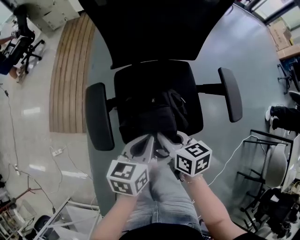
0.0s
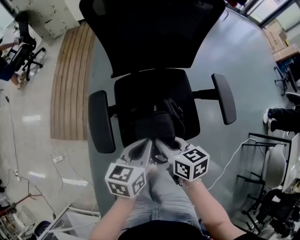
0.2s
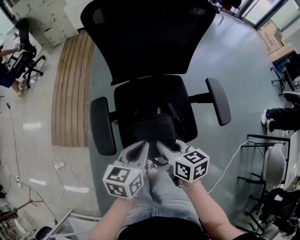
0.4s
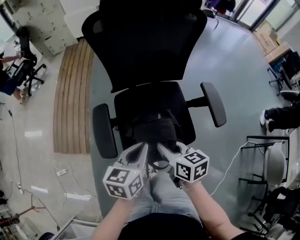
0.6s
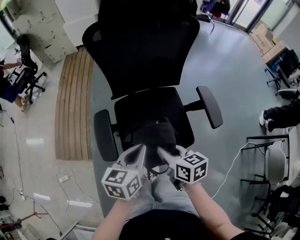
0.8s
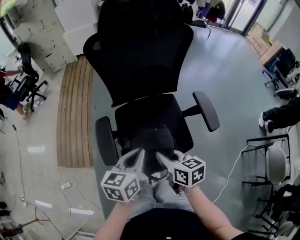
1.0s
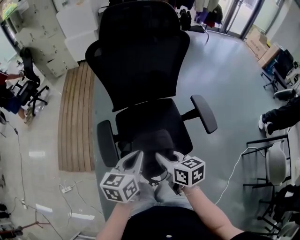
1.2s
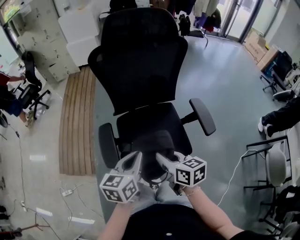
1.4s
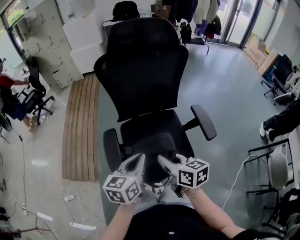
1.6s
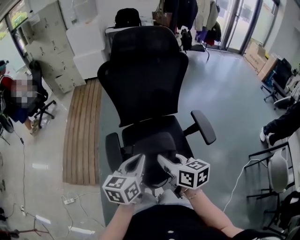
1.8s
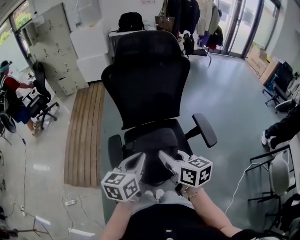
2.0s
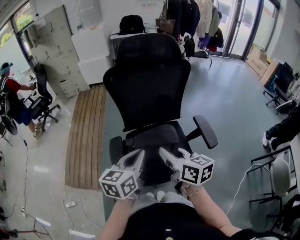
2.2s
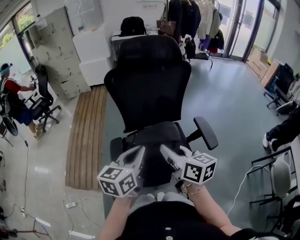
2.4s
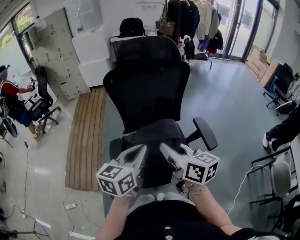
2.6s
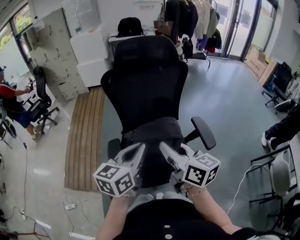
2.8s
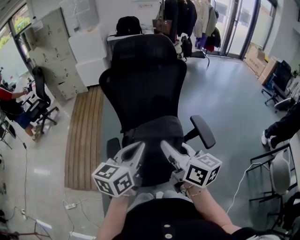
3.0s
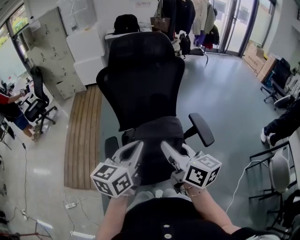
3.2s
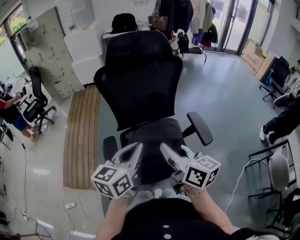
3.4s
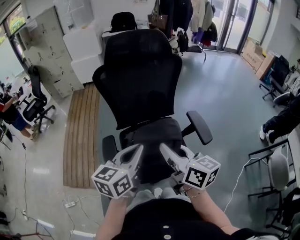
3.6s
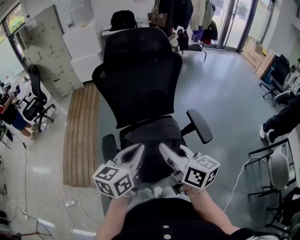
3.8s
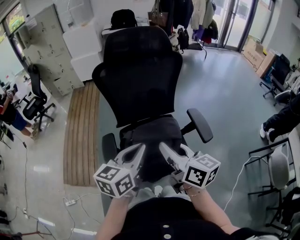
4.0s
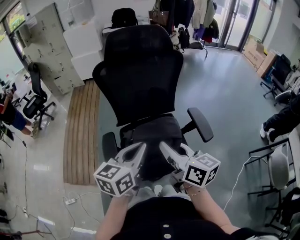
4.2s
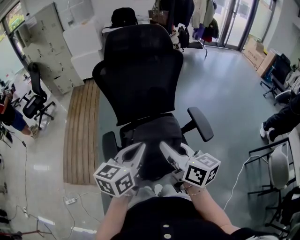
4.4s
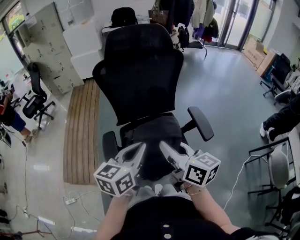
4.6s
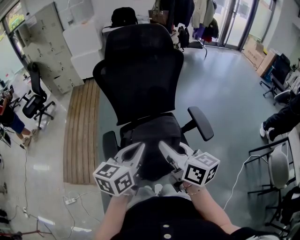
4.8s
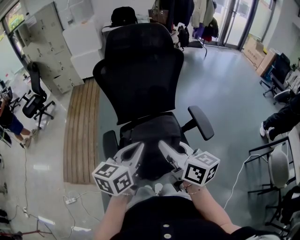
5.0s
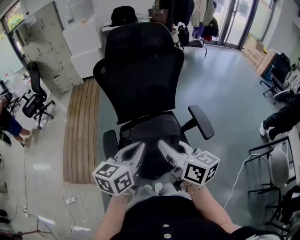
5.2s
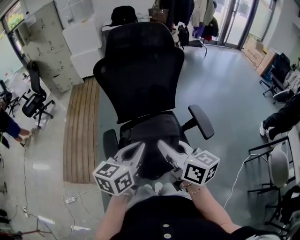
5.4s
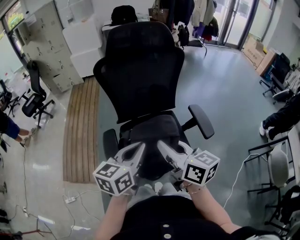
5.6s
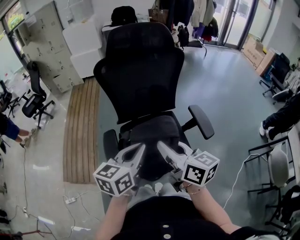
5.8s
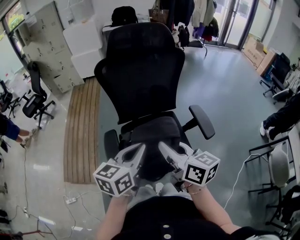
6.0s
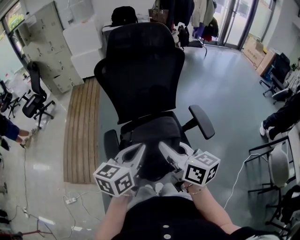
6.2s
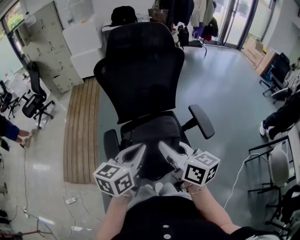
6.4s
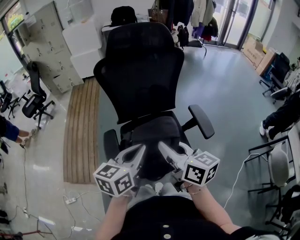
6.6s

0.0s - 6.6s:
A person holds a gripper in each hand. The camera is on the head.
0.0s - 1.6s: Both grippers travel together upward, approximately 15 cm.
1.6s - 3.2s: The grippers both shift upward by about 10 cm. The right gripper turns by approximately 20 degrees.
3.2s - 6.6s: The grippers make only small movements.

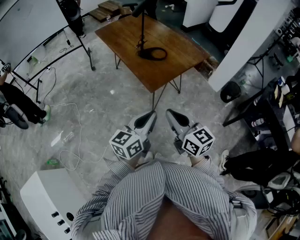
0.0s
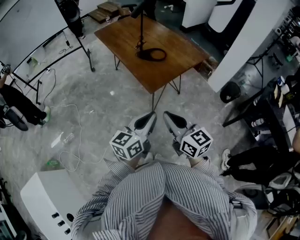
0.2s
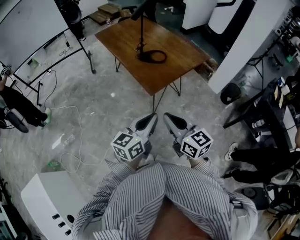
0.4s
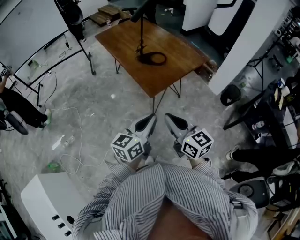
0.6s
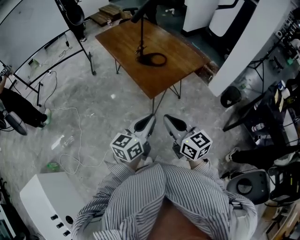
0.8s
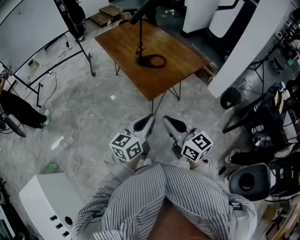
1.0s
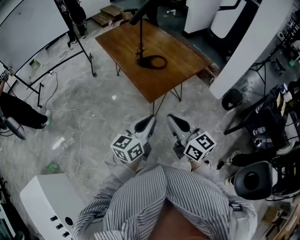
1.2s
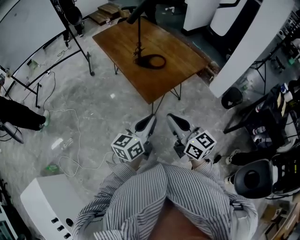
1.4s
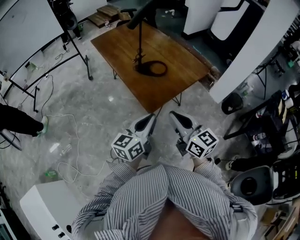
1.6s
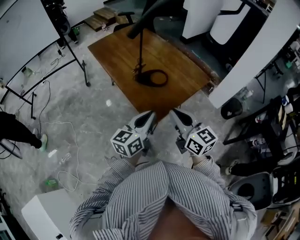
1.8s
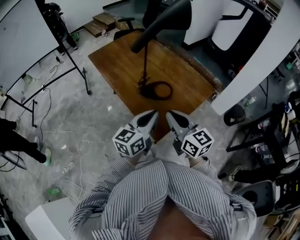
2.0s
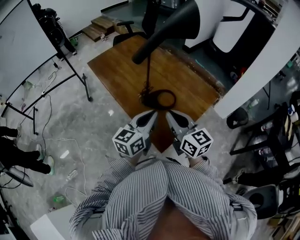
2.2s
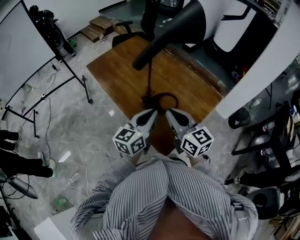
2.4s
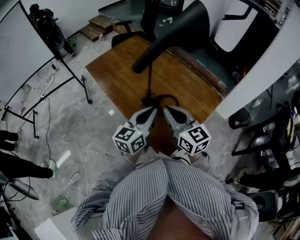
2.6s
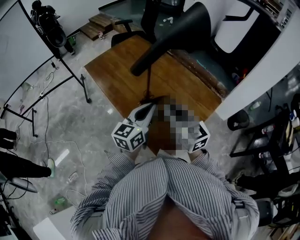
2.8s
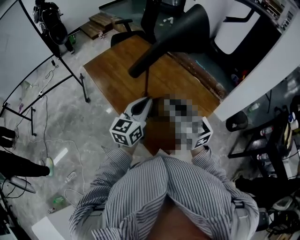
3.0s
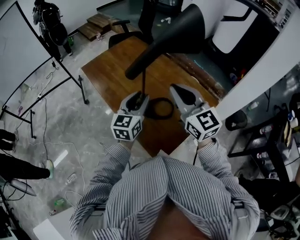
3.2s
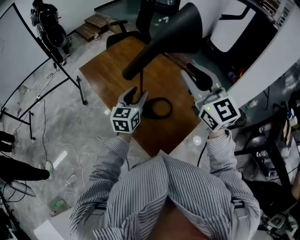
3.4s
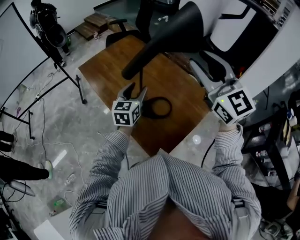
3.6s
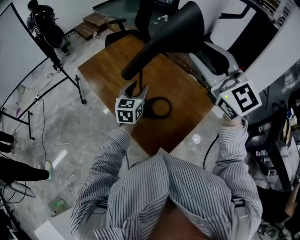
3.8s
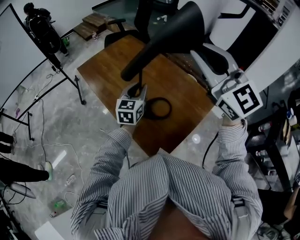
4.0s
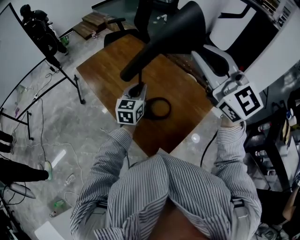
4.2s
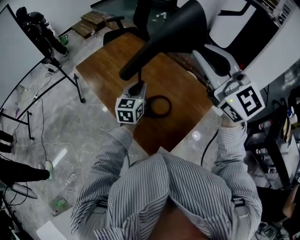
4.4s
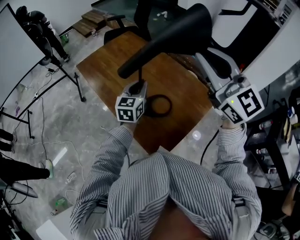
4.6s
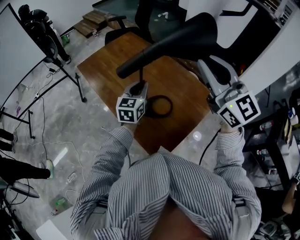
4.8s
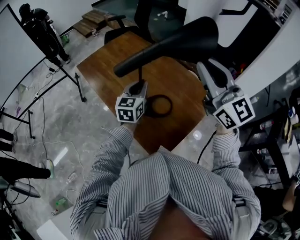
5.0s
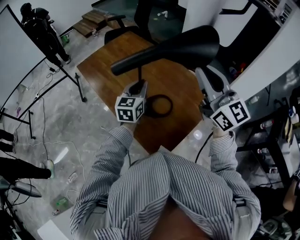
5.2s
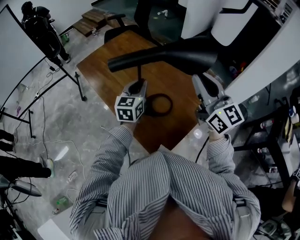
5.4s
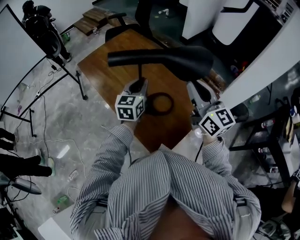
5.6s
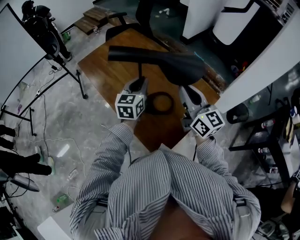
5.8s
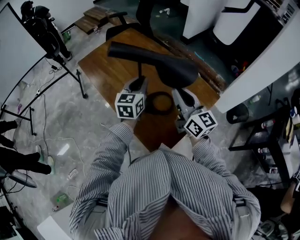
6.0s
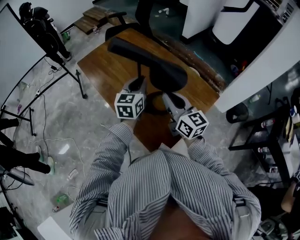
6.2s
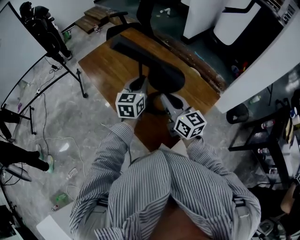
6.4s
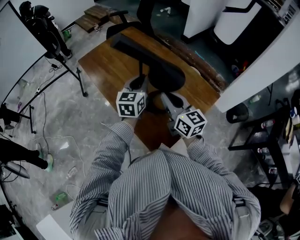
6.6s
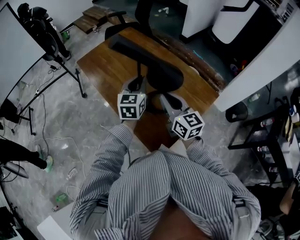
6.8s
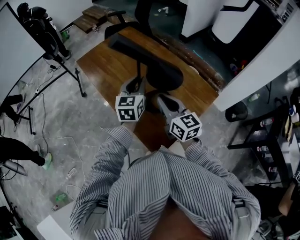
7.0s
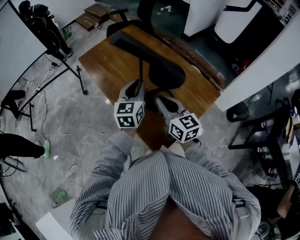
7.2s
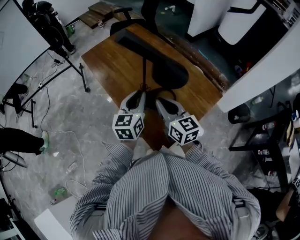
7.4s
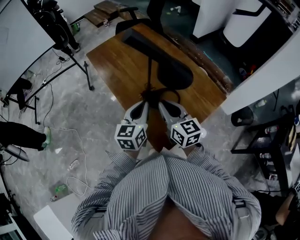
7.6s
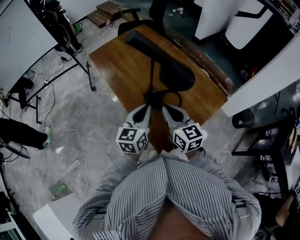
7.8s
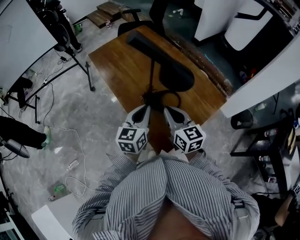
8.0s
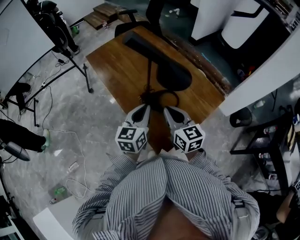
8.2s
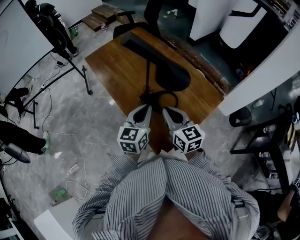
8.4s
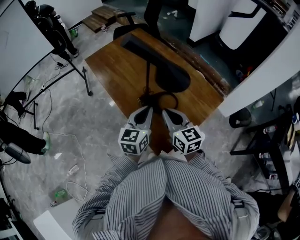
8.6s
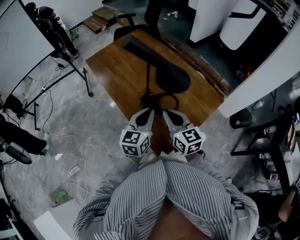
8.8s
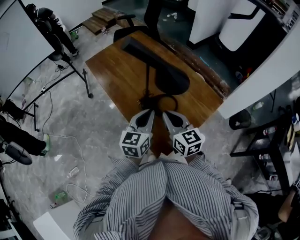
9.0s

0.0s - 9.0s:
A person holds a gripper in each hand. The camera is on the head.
0.0s - 1.6s: The two grippers go about 15 cm forward.
1.6s - 3.0s: Both grippers travel together forward, roughly 35 cm.
3.0s - 4.4s: The left gripper moves forward, some 10 cm, and opens, then closes once more, while the right gripper heads upward, covering some 20 cm, rotates some 30 degrees, and opens and closes again.
4.4s - 6.0s: The right gripper is displaced downward by some 25 cm, and rotates some 40 degrees.
6.0s - 7.6s: The right gripper goes some 10 cm to the left and downward; the left gripper moves backward, approximately 10 cm.
7.6s - 9.0s: The grippers stay close to where they were, moving slightly.

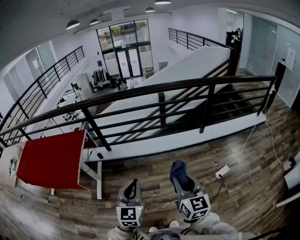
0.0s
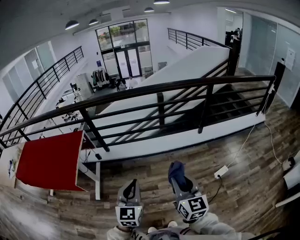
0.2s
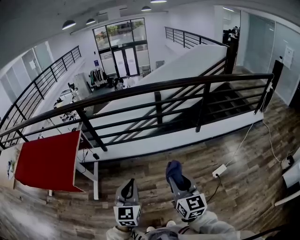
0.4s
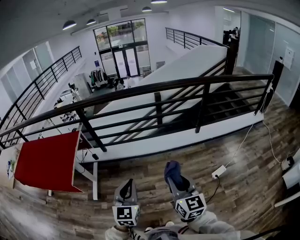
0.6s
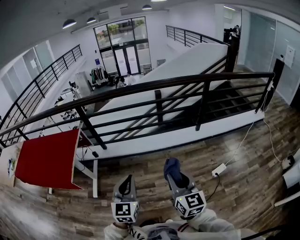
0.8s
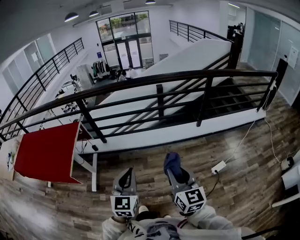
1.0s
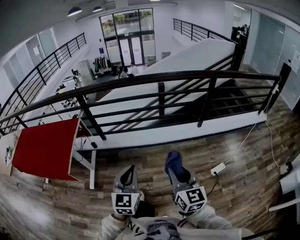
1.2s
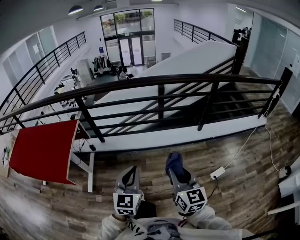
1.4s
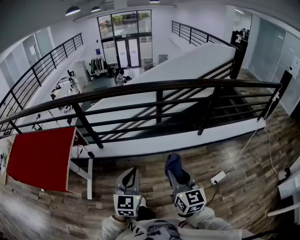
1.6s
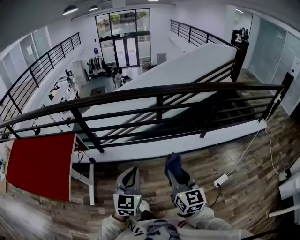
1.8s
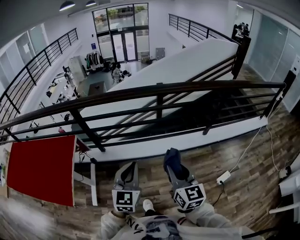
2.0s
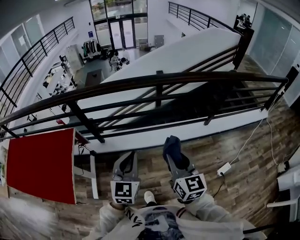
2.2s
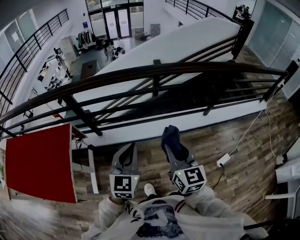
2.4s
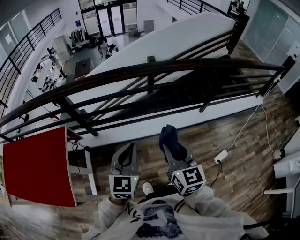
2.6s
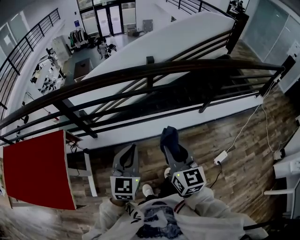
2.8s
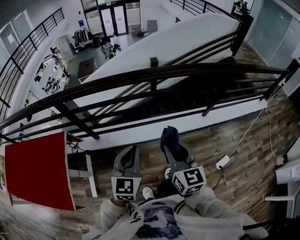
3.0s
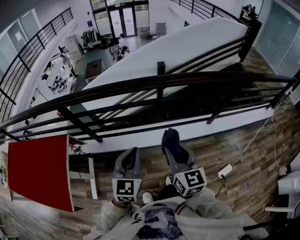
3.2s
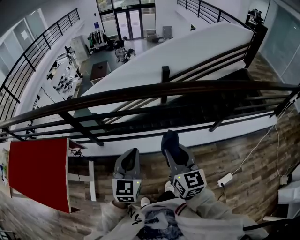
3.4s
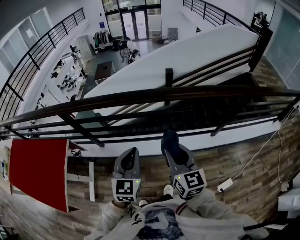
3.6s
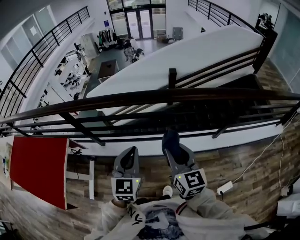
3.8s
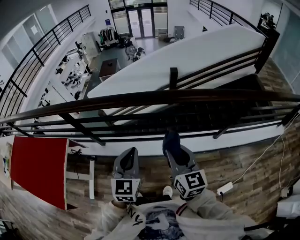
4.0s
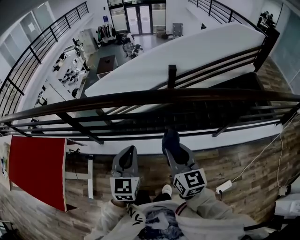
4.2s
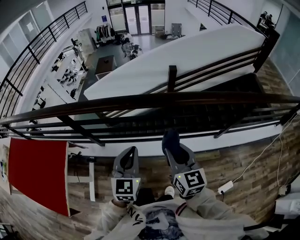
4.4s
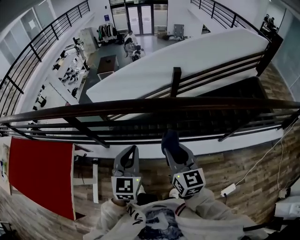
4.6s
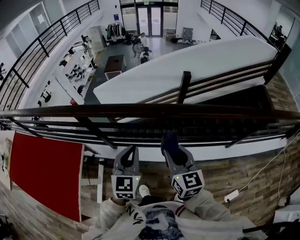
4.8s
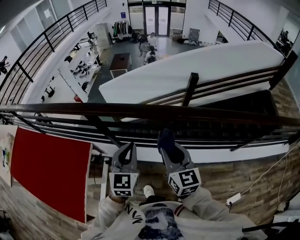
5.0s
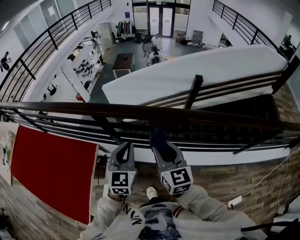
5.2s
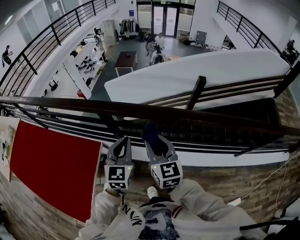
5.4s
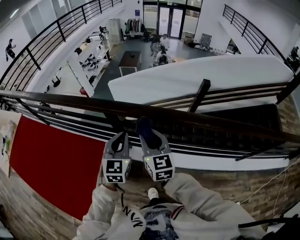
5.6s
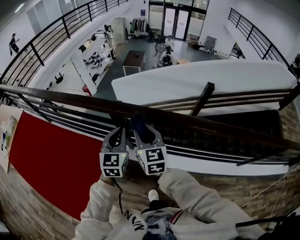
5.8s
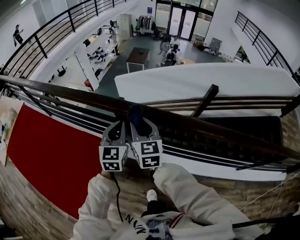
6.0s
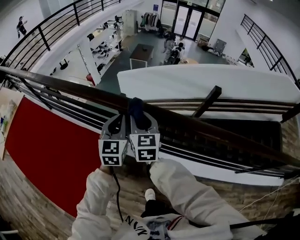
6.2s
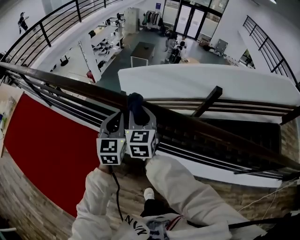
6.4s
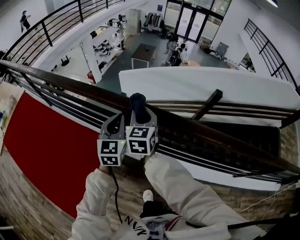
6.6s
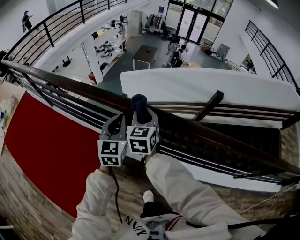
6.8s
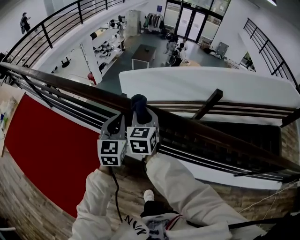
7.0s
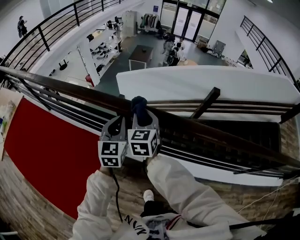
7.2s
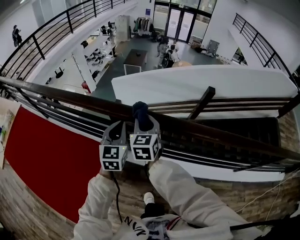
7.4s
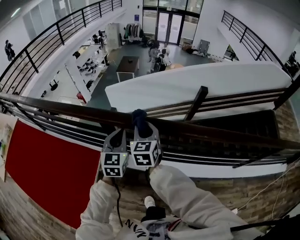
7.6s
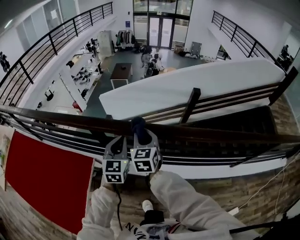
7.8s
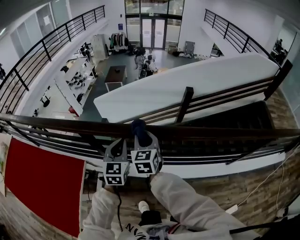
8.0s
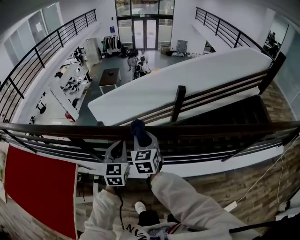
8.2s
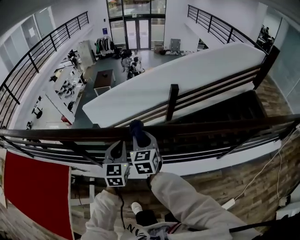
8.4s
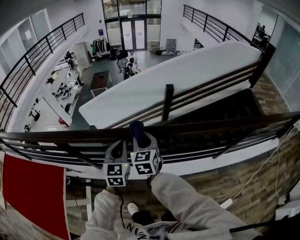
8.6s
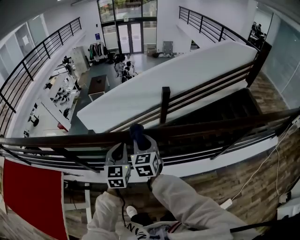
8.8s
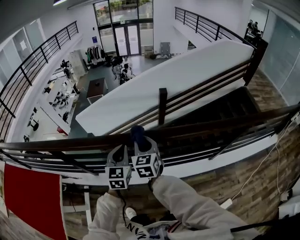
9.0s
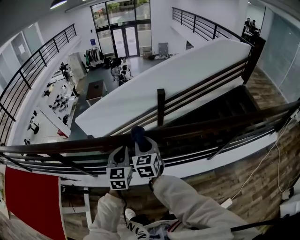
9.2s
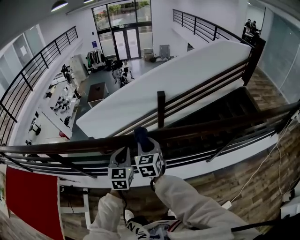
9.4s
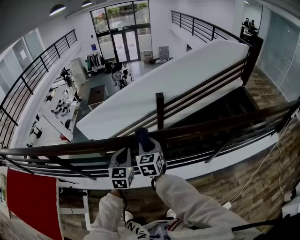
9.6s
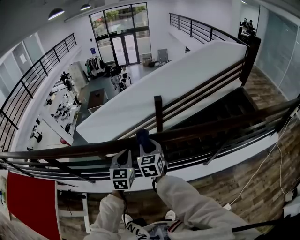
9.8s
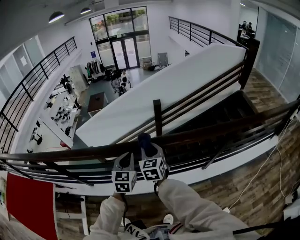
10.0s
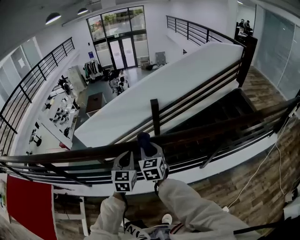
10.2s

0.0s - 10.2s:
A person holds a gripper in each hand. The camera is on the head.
0.0s - 1.4s: The left gripper is displaced forward and to the right by some 10 cm. Meanwhile the right gripper travels forward by about 10 cm.
1.4s - 3.0s: The right gripper shifts about 35 cm forward and to the left; the left gripper shifts some 30 cm forward.
3.0s - 4.4s: The two grippers go some 15 cm forward.
4.4s - 5.8s: The pair of grippers is taken to the left and forward, roughly 50 cm.
5.8s - 7.2s: The right gripper goes some 10 cm forward; the left gripper is displaced forward by roughly 5 cm.
7.2s - 8.8s: The pair of grippers is taken to the right, about 40 cm.
8.8s - 10.2s: The two grippers go about 25 cm to the right.
